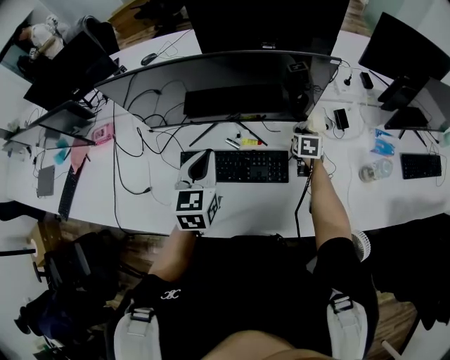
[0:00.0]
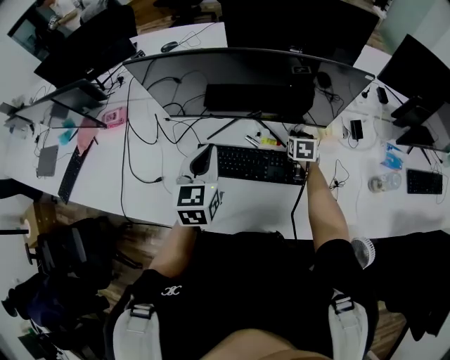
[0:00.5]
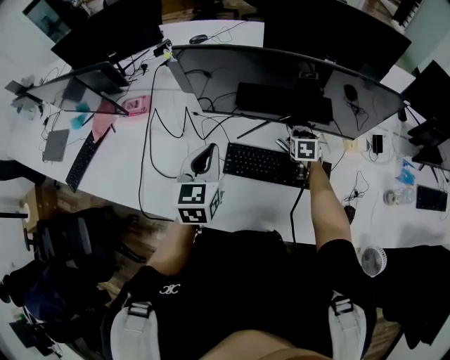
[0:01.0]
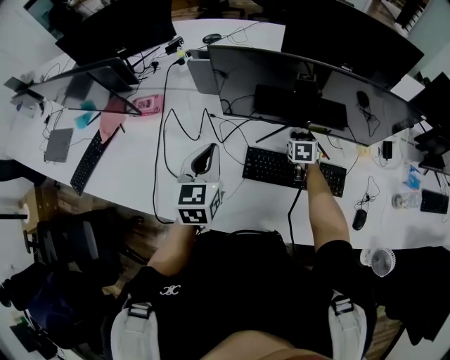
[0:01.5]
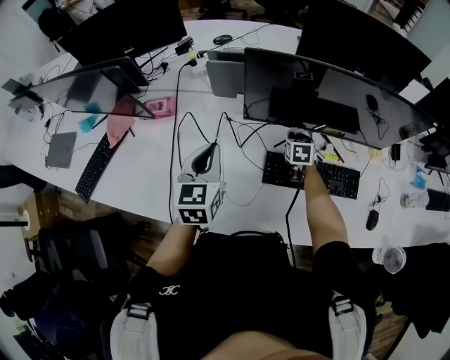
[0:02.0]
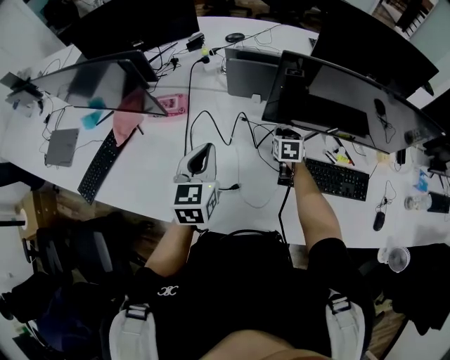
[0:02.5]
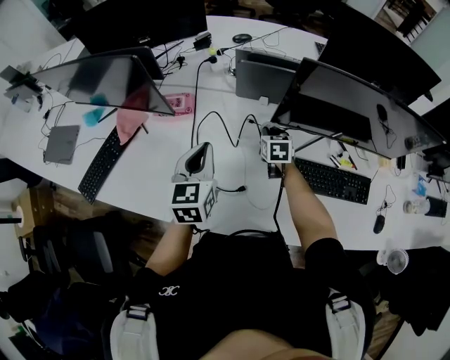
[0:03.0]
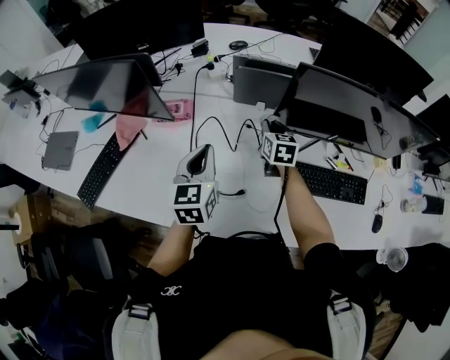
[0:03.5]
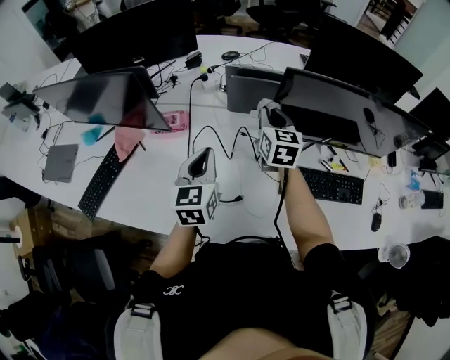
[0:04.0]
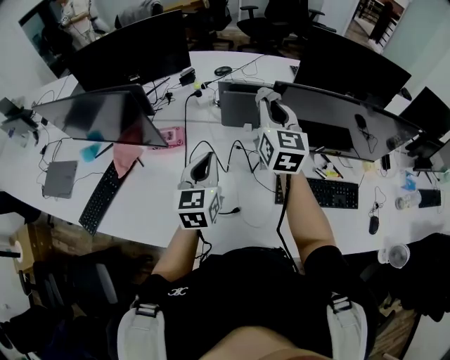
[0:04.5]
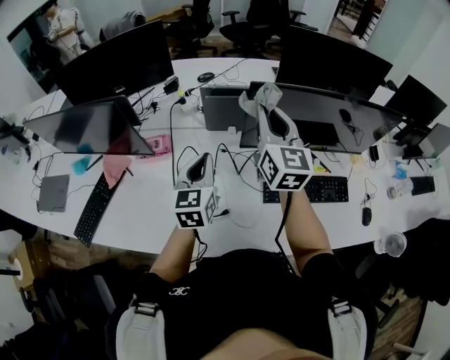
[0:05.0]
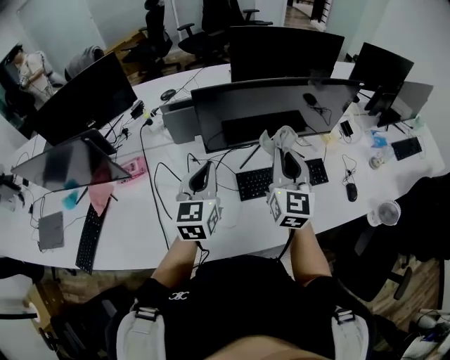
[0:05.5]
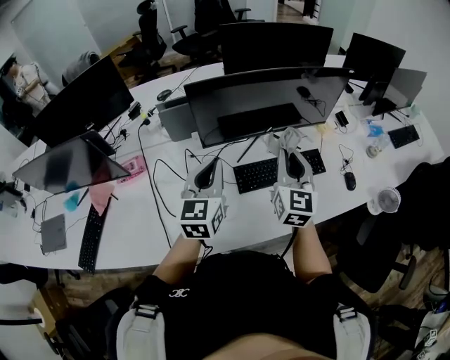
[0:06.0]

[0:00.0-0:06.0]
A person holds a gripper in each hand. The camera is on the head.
0:00.0 to 0:02.0: Both grippers travel together to the left, approximately 35 cm.
0:02.0 to 0:04.0: The right gripper goes approximately 30 cm upward and to the left, and angles its fingers upward, by some 30 degrees. The left gripper goes about 10 cm to the left.
0:04.0 to 0:06.0: The left gripper is displaced to the right by roughly 20 cm, and swivels some 30 degrees. Meanwhile the right gripper shifts approximately 35 cm to the right and backward, and changes its angle by approximately 30 degrees.

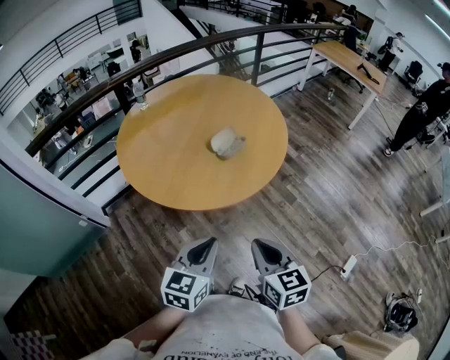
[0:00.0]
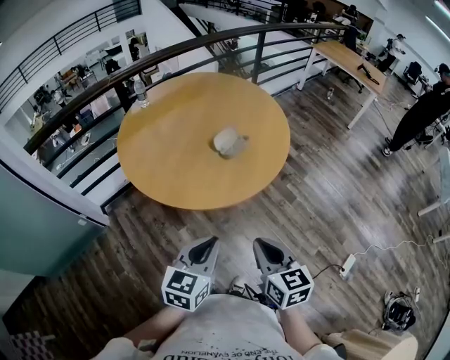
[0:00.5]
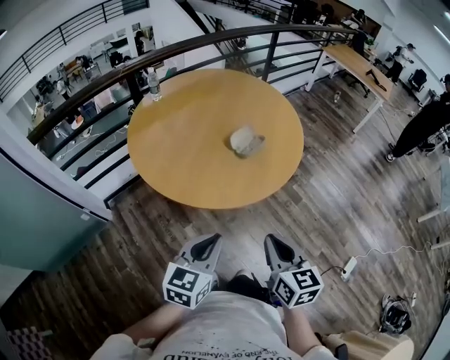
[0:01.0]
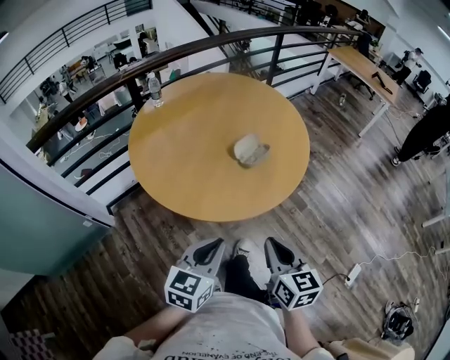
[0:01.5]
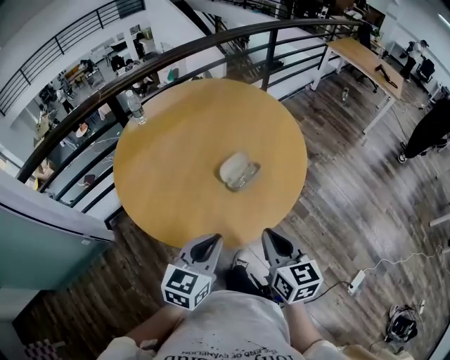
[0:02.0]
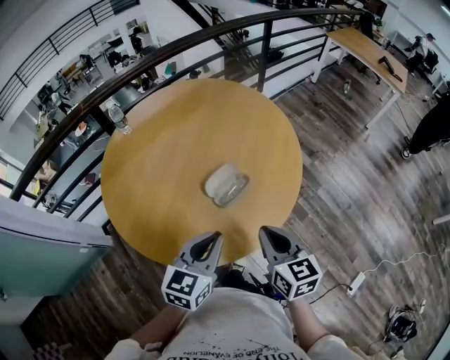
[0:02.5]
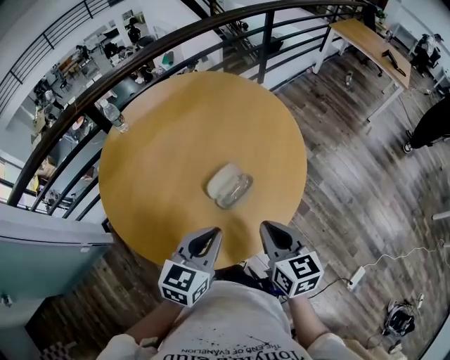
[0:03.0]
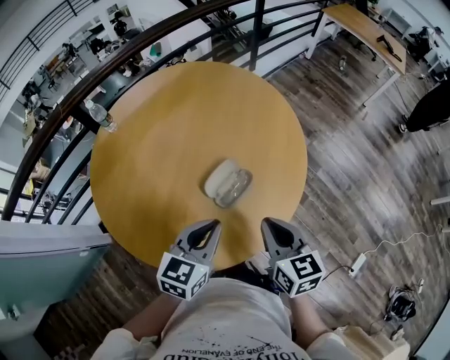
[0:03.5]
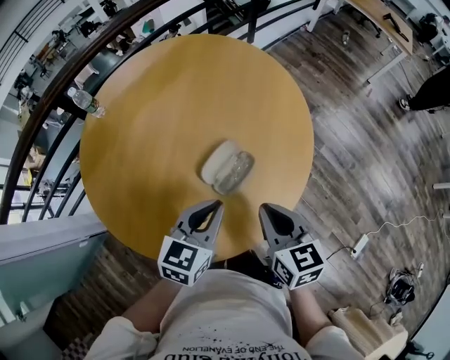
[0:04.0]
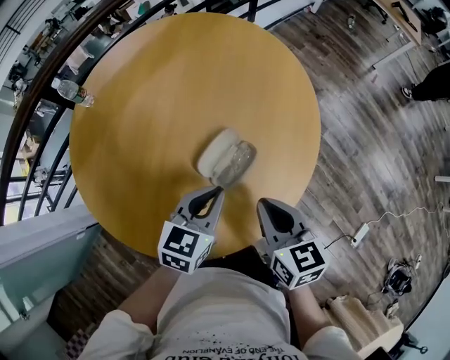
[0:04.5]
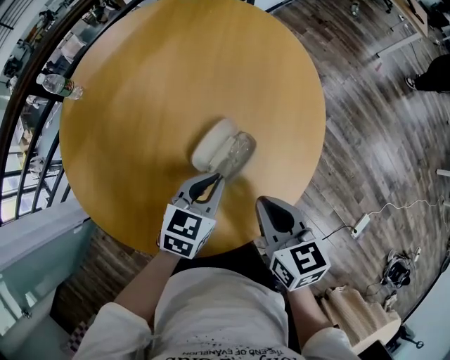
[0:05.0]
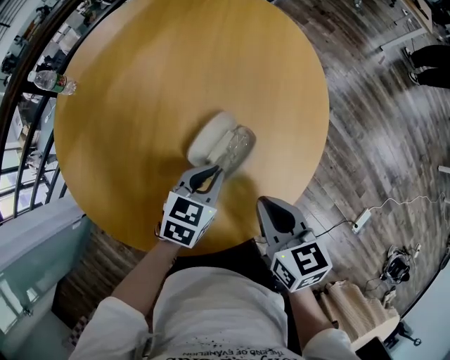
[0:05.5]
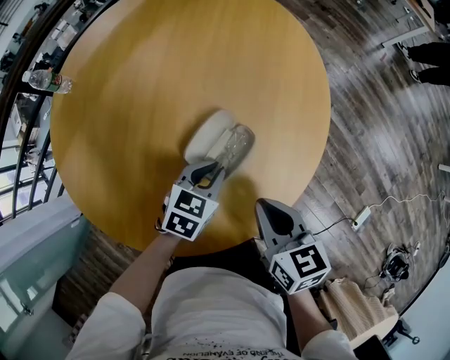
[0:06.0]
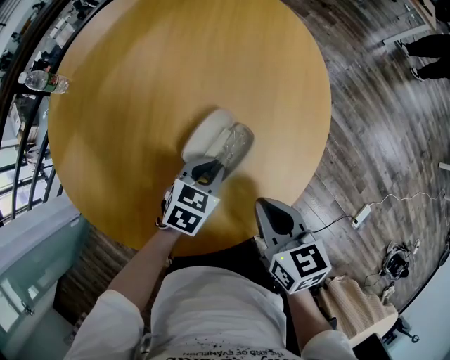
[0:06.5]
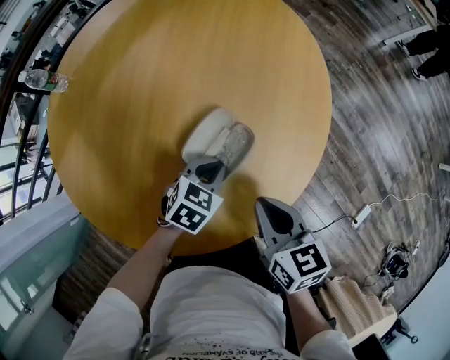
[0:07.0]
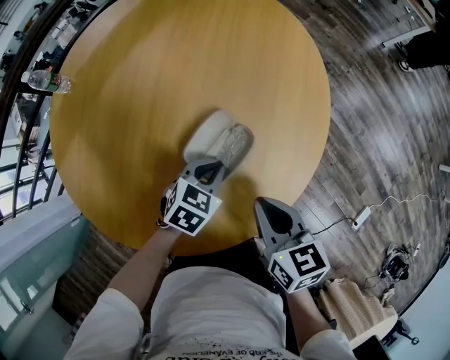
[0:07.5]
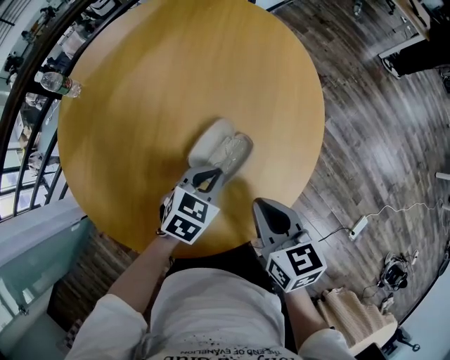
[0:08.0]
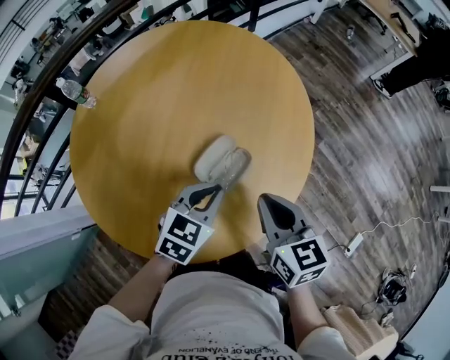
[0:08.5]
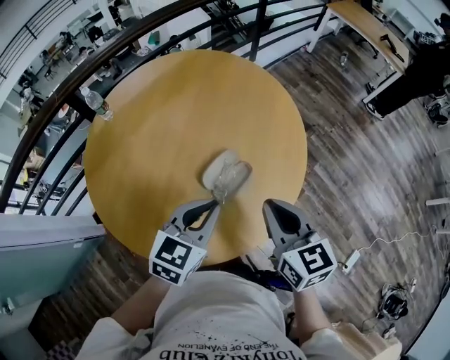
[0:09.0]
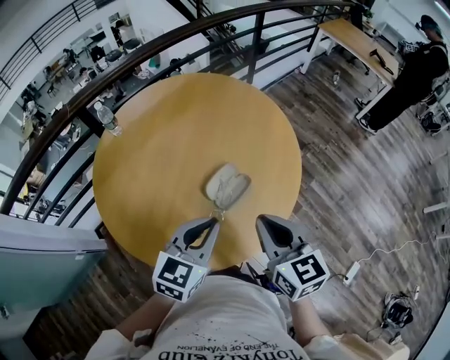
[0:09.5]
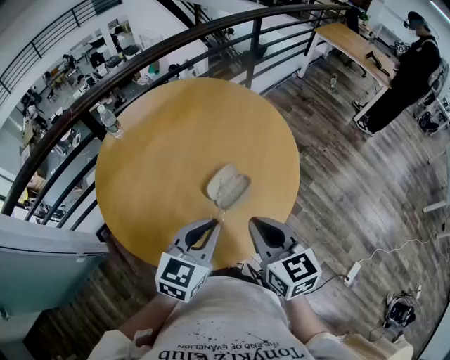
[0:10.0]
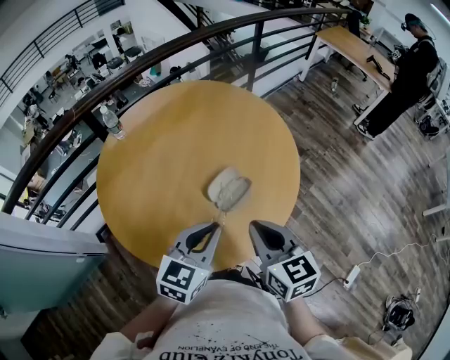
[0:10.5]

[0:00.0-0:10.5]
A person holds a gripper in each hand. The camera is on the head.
0:00.0 to 0:02.0: The grippers both shift forward by about 20 cm.
0:02.0 to 0:04.0: The grippers both shift forward by approximately 20 cm.
0:04.0 to 0:06.5: The right gripper moves downward, about 10 cm; the left gripper is displaced downward by approximately 20 cm, and swivels some 30 degrees.
0:06.5 to 0:08.5: The left gripper moves upward, roughly 15 cm. Meanwhile the right gripper is displaced upward by some 10 cm.
0:08.5 to 0:10.5: The right gripper goes about 15 cm backward and upward; the left gripper goes approximately 20 cm upward and backward, and rotates about 20 degrees.

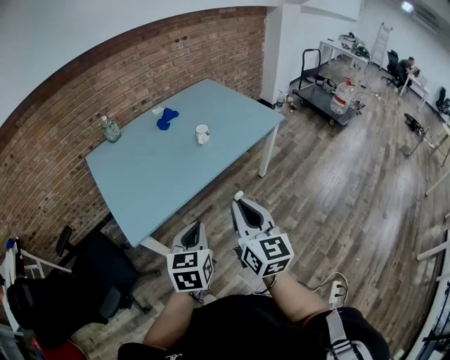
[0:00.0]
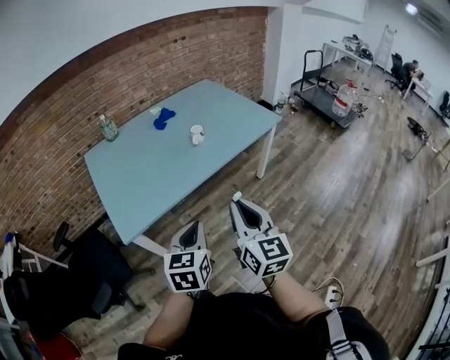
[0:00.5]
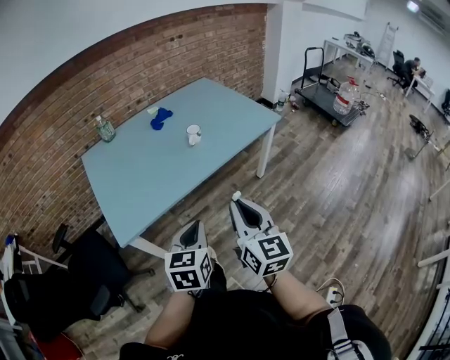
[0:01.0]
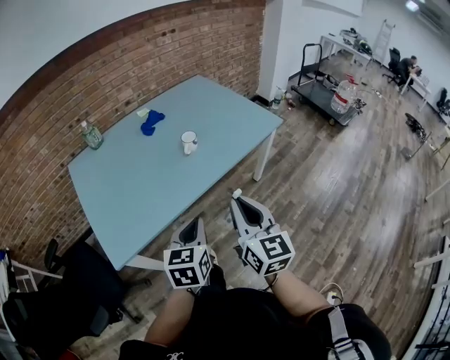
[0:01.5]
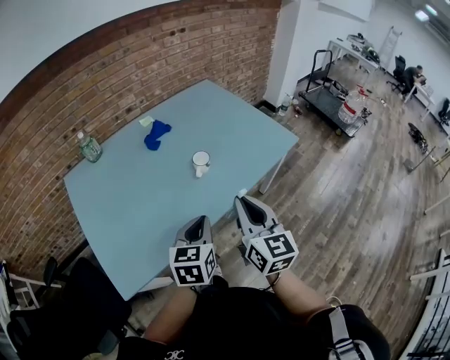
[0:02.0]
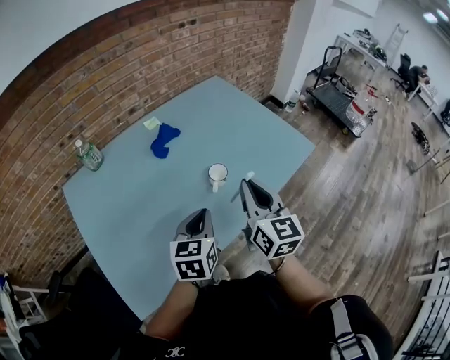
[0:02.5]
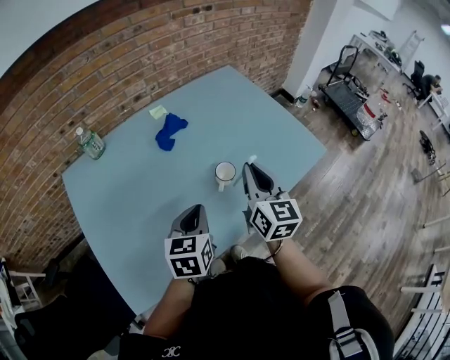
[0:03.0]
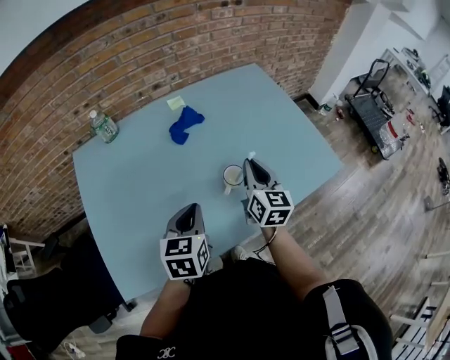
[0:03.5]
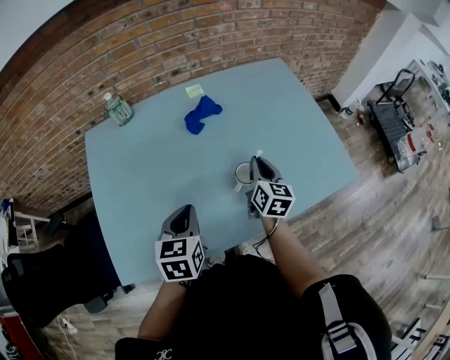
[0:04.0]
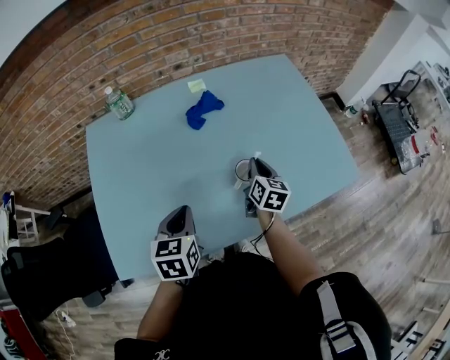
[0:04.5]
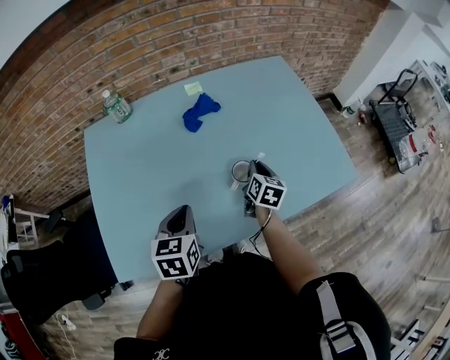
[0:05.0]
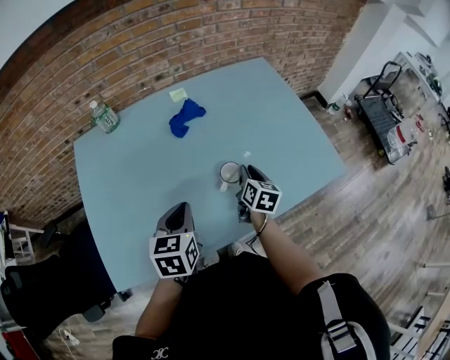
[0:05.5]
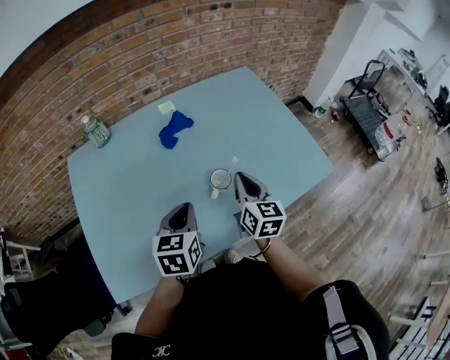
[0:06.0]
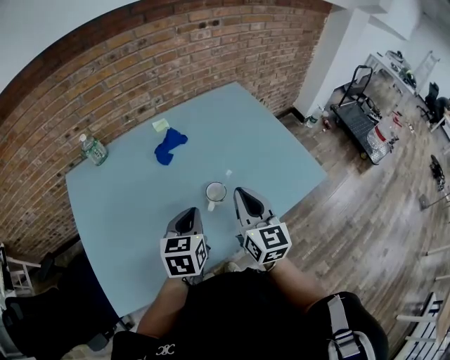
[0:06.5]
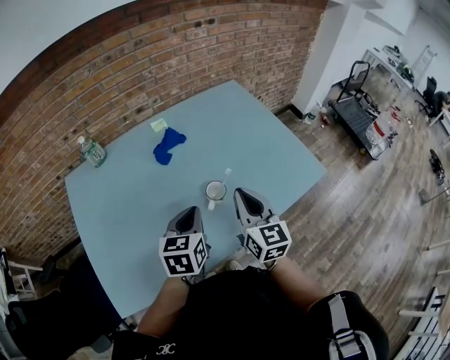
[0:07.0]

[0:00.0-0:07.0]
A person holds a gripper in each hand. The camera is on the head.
0:00.0 to 0:02.0: The grippers both shift forward by about 30 cm.
0:02.0 to 0:03.5: The right gripper moves forward, some 30 cm, while the left gripper is displaced forward and to the left by approximately 20 cm.
0:03.5 to 0:05.0: The right gripper heads downward, covering about 15 cm, and swivels approximately 20 degrees.
0:05.0 to 0:07.0: The left gripper goes roughly 10 cm to the right; the right gripper is displaced upward and backward by roughly 20 cm, and rotates approximately 30 degrees.

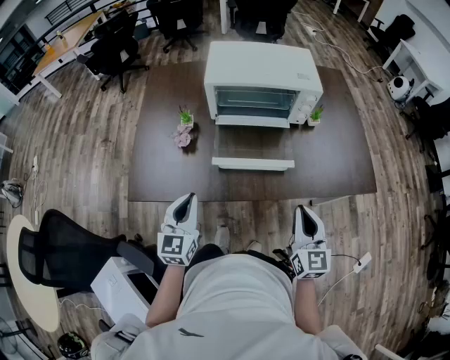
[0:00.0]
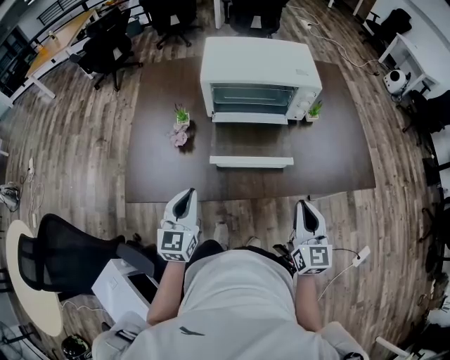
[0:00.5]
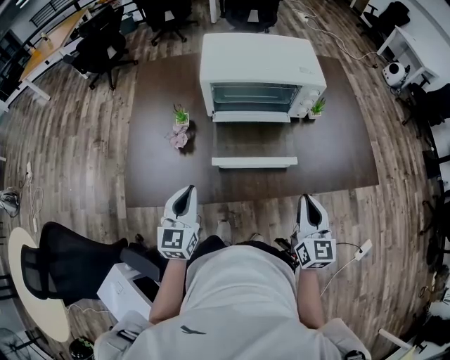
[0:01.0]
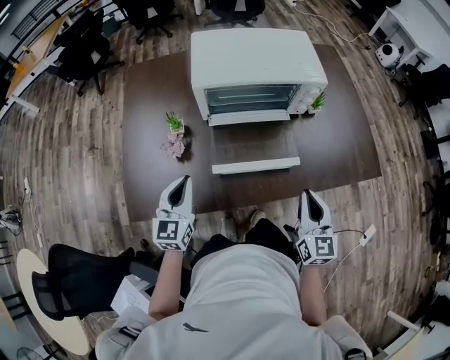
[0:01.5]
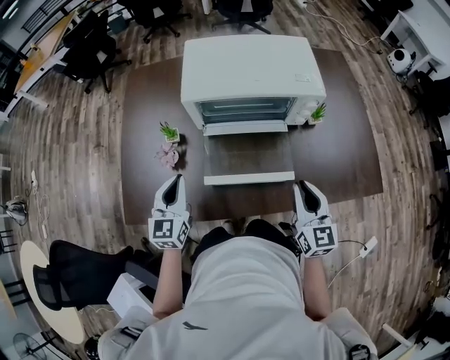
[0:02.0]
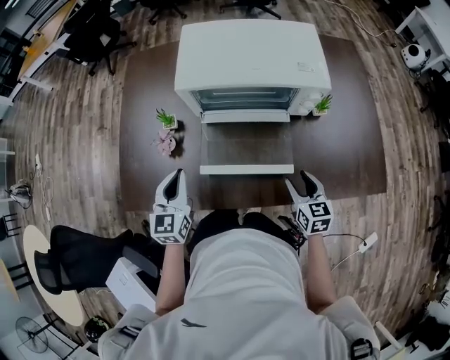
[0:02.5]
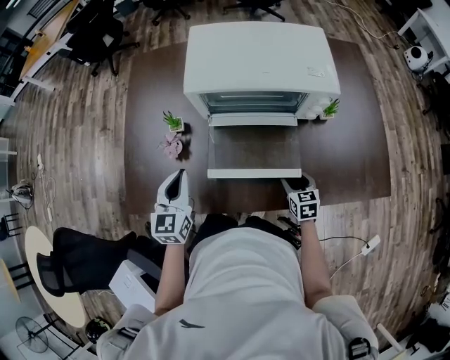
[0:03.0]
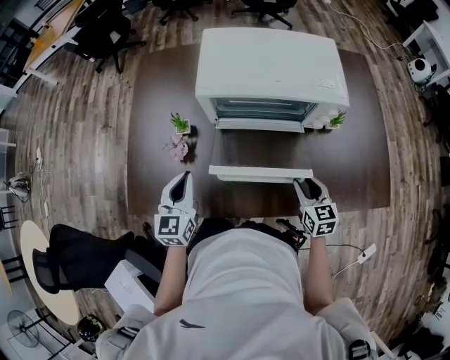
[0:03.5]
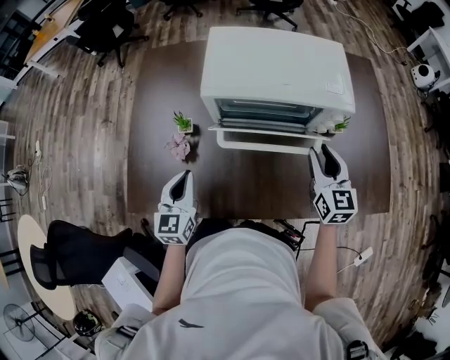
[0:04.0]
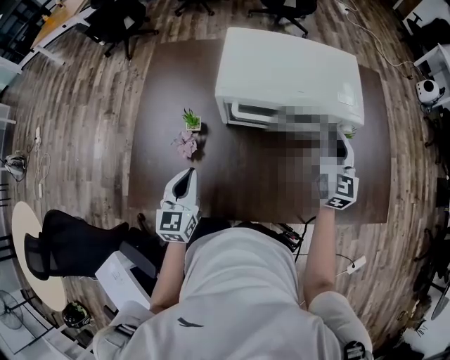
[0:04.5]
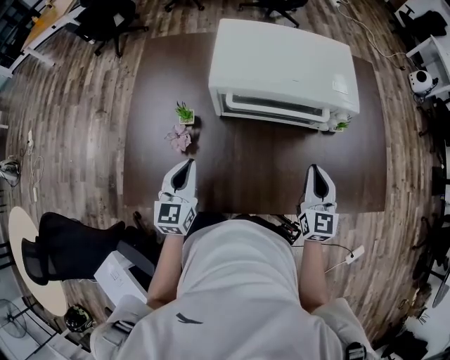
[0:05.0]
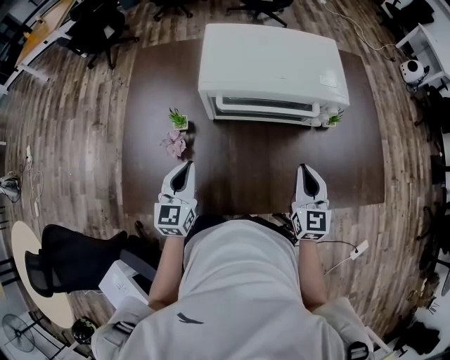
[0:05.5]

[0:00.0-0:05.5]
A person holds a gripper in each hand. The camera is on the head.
0:00.0 to 0:02.0: Both grippers travel together forward, about 15 cm.
0:02.0 to 0:03.5: The right gripper shifts some 15 cm downward, swivels roughly 20 degrees, and opens.
0:03.5 to 0:05.5: The right gripper is displaced upward by some 10 cm, changes its angle by roughly 20 degrees, and closes.
